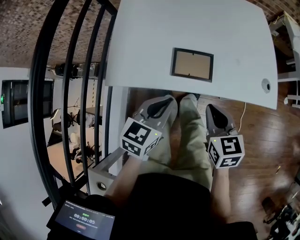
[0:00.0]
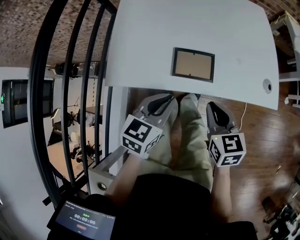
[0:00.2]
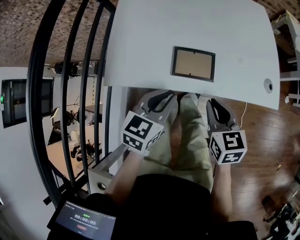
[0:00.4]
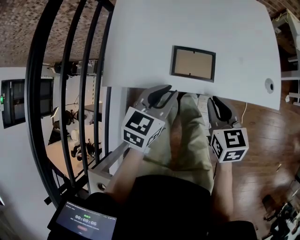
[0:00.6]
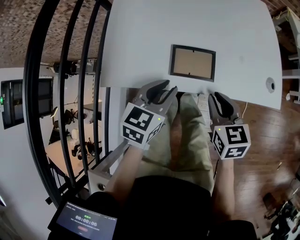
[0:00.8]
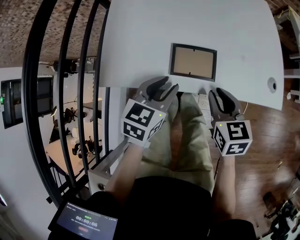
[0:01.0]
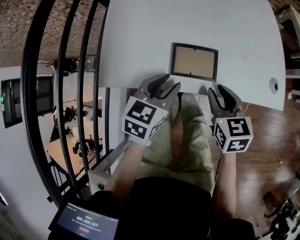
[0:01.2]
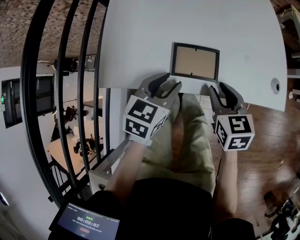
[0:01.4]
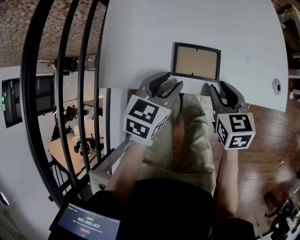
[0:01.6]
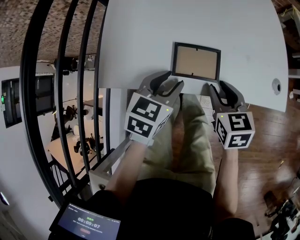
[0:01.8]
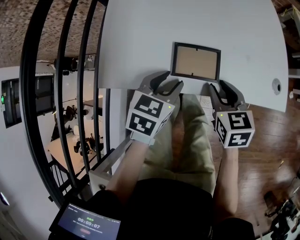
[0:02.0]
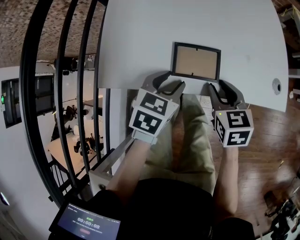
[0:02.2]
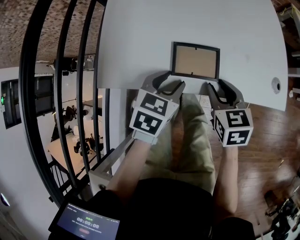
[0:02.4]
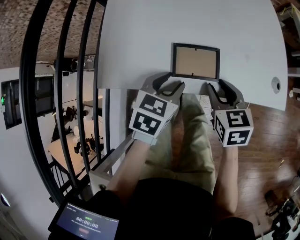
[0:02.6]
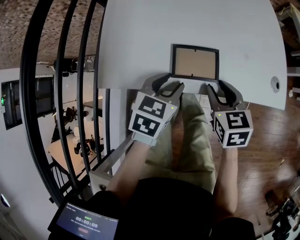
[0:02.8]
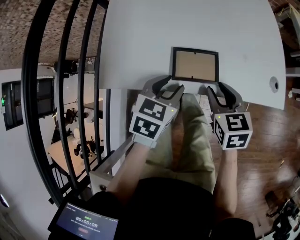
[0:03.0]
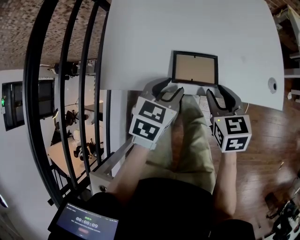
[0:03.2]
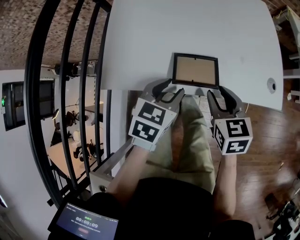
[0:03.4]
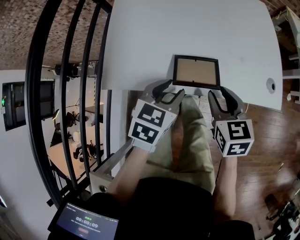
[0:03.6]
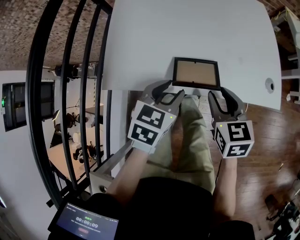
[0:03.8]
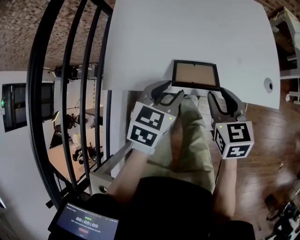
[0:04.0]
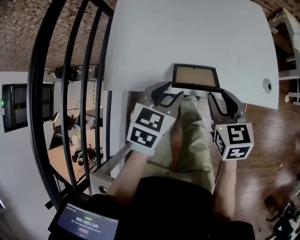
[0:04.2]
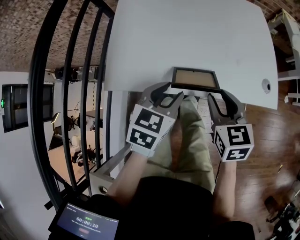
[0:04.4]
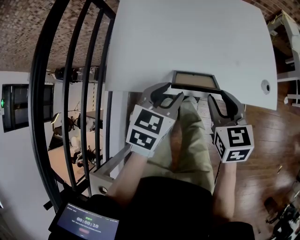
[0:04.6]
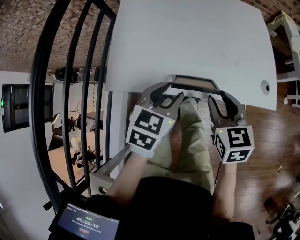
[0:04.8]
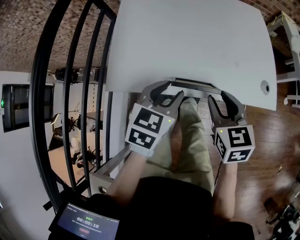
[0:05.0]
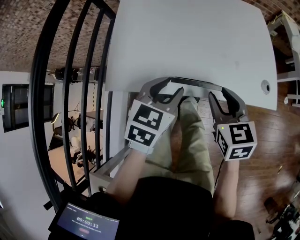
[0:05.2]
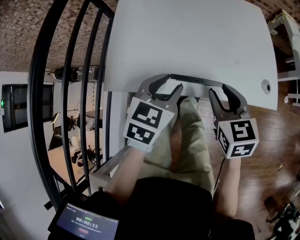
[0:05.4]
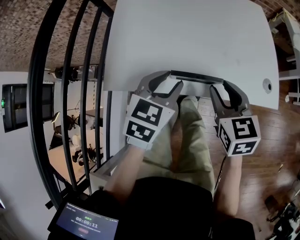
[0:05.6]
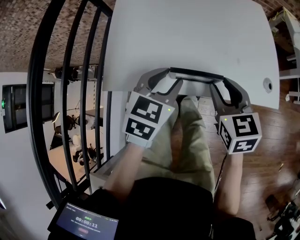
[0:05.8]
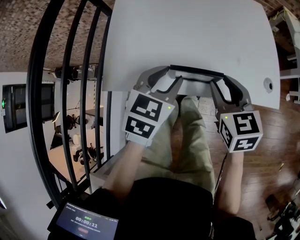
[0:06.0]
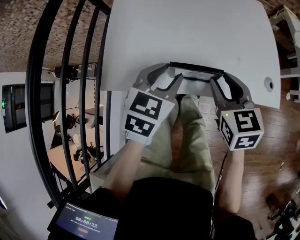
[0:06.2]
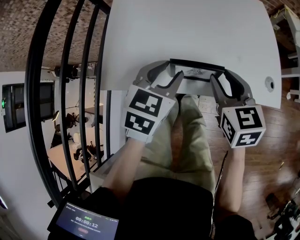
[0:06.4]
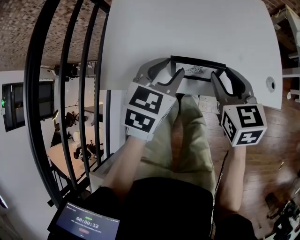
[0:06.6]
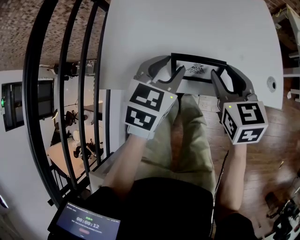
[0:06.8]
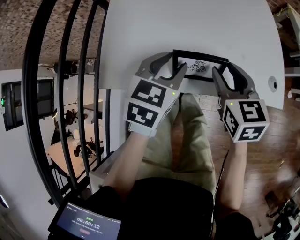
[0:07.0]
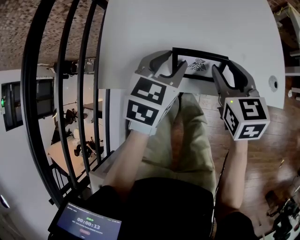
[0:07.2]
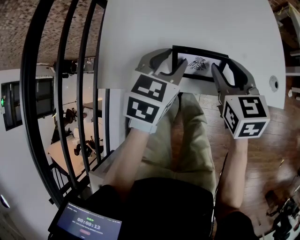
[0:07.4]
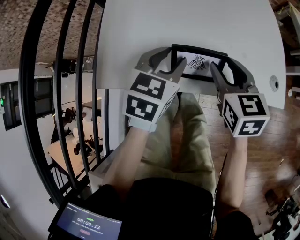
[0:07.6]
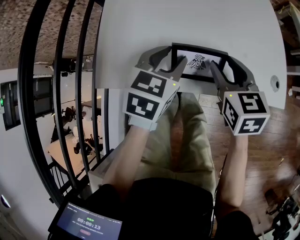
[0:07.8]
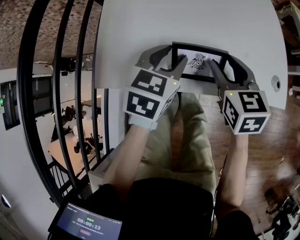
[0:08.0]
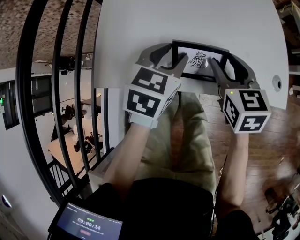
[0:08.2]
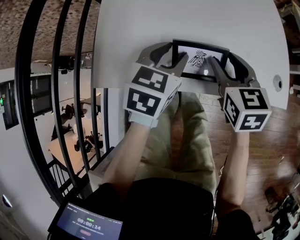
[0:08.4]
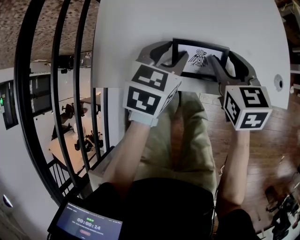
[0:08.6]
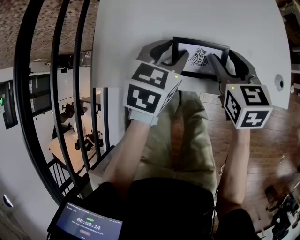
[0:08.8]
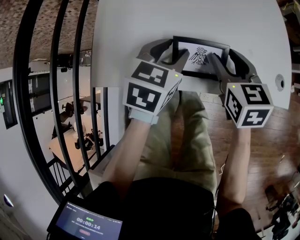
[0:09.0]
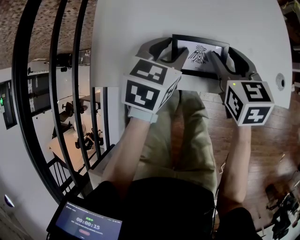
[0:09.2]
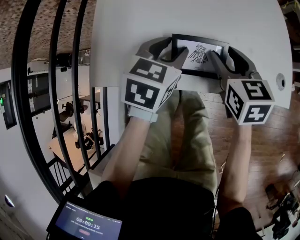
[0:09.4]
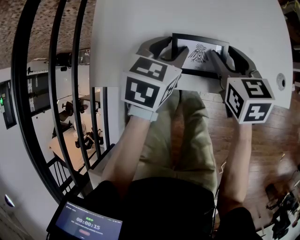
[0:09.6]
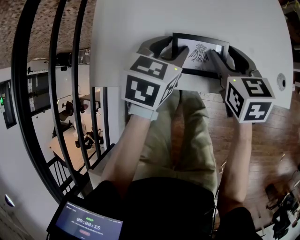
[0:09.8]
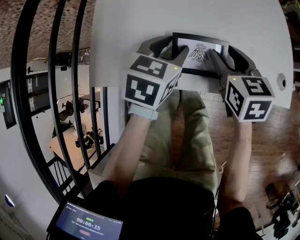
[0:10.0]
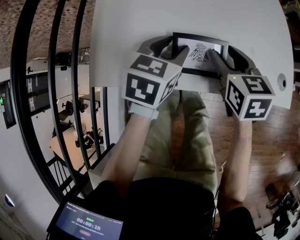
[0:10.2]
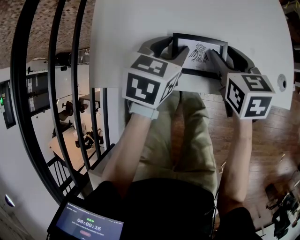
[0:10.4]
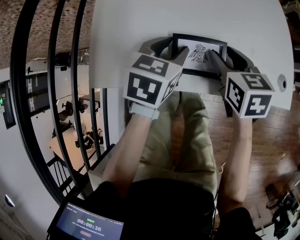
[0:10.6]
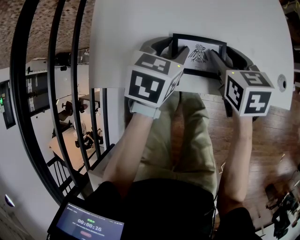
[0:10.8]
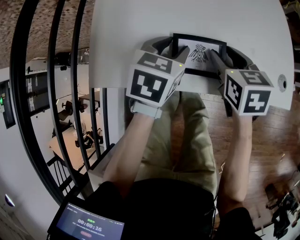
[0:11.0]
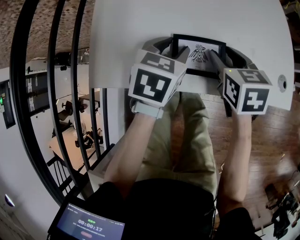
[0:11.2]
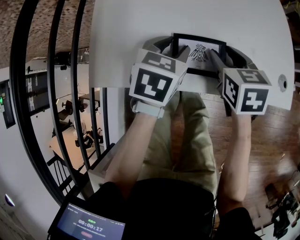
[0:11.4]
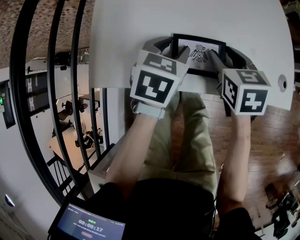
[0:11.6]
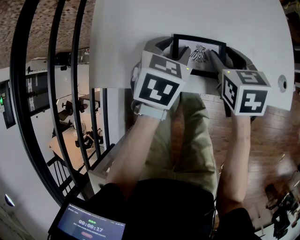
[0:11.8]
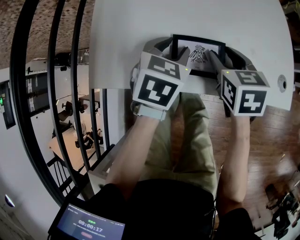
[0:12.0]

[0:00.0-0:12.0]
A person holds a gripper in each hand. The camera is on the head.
0:00.0 to 0:01.6: Both grippers move forward, about 5 cm. The left gripper opens up, while the right gripper opens up.
0:01.6 to 0:03.0: The grippers move only a little.
0:03.0 to 0:04.4: Both grippers move upward, roughly 5 cm.
0:04.4 to 0:06.0: The grippers stay close to where they were, moving slightly.
0:06.0 to 0:07.6: The right gripper shifts by about 5 cm.
0:07.6 to 0:09.0: The grippers stay close to where they were, moving slightly.
0:09.0 to 0:12.0: There are only small adjustments of the grippers.

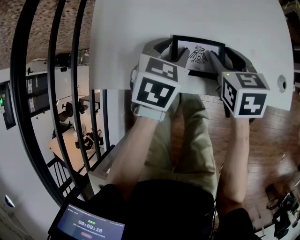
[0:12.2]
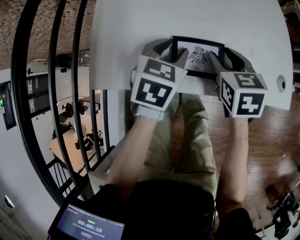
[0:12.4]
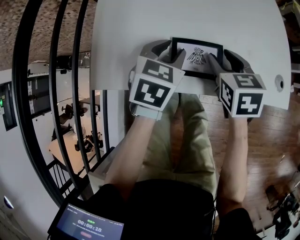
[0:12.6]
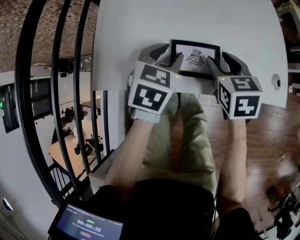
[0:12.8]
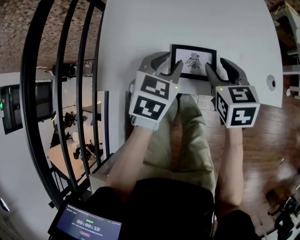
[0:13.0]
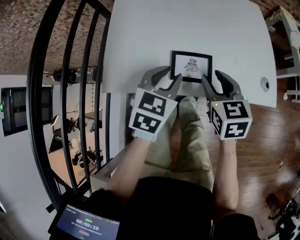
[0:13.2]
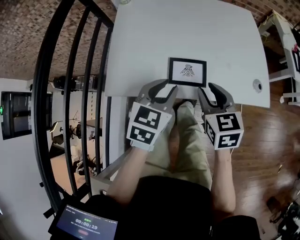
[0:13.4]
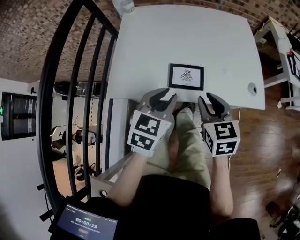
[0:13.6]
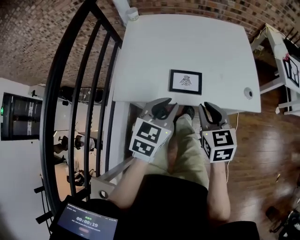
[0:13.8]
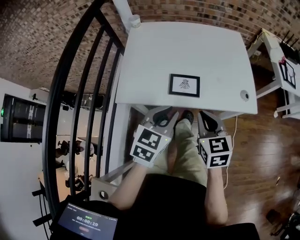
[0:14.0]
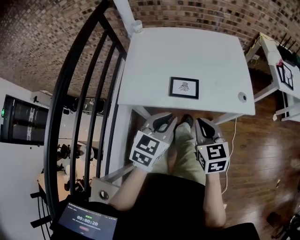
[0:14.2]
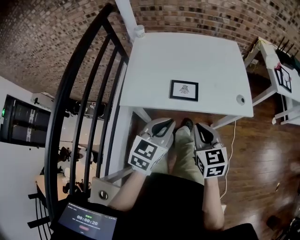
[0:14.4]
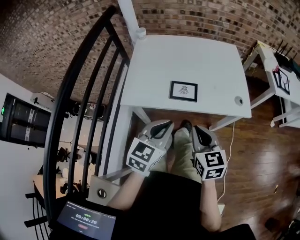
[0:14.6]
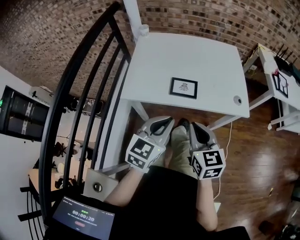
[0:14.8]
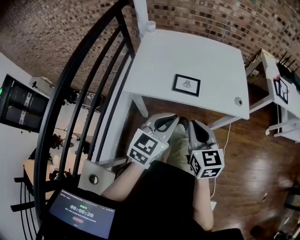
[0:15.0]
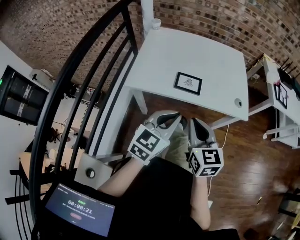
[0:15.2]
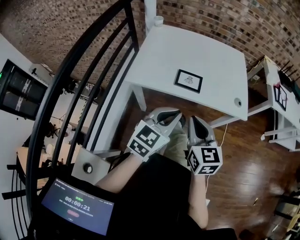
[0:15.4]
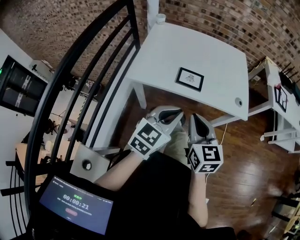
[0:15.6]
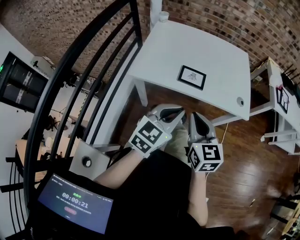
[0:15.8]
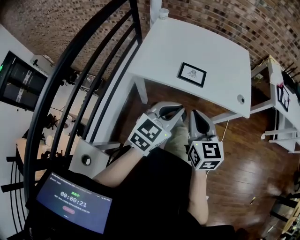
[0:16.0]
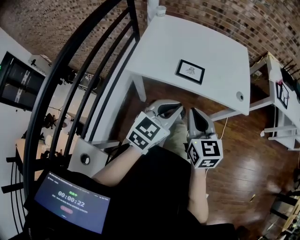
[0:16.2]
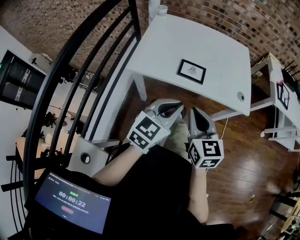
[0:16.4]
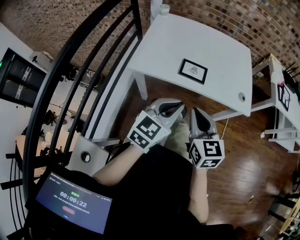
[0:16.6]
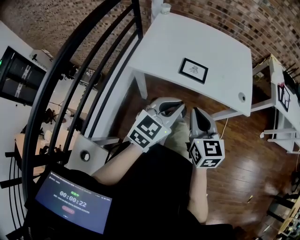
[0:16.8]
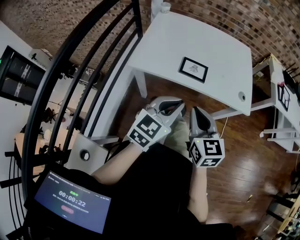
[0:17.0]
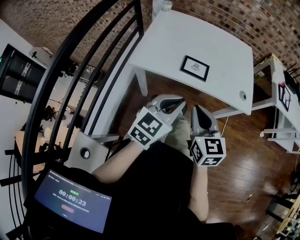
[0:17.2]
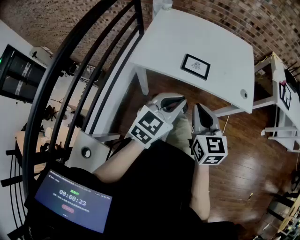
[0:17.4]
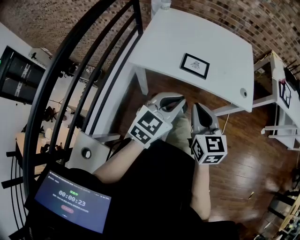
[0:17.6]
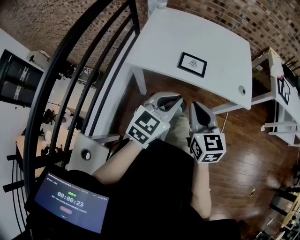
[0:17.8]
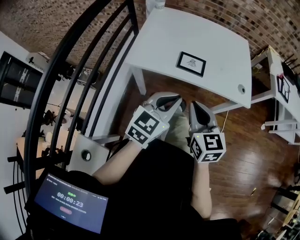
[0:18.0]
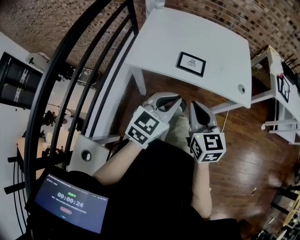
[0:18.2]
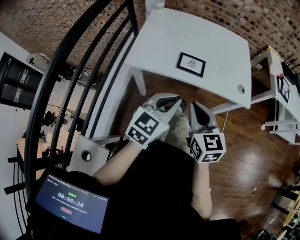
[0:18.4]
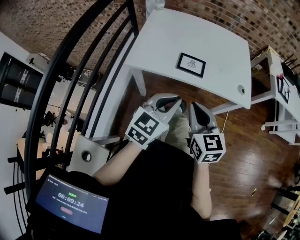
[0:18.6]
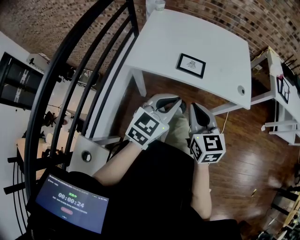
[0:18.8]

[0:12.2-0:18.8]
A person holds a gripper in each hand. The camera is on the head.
0:12.2 to 0:13.8: The two grippers go about 20 cm backward and upward. The right gripper closes up. Meanwhile the left gripper closes up.
0:13.8 to 0:15.4: The two grippers go approximately 15 cm backward and upward.
0:15.4 to 0:17.2: There are only small adjustments of the grippers.
0:17.2 to 0:18.8: The two grippers keep their place.

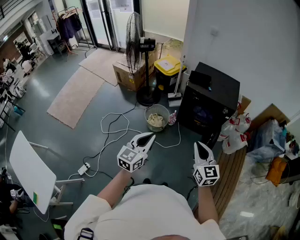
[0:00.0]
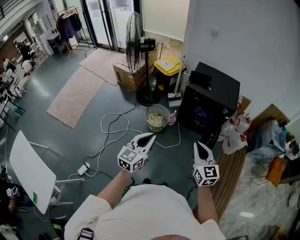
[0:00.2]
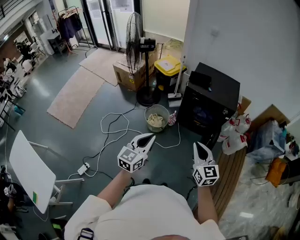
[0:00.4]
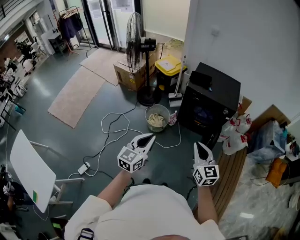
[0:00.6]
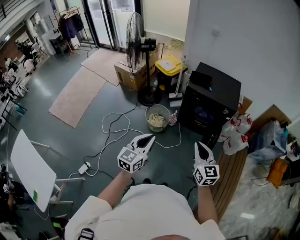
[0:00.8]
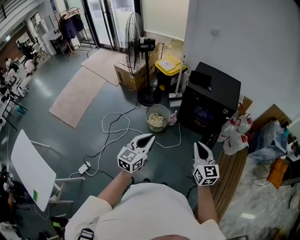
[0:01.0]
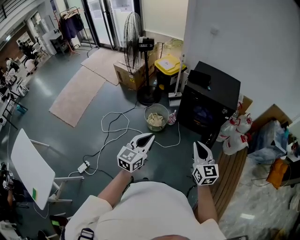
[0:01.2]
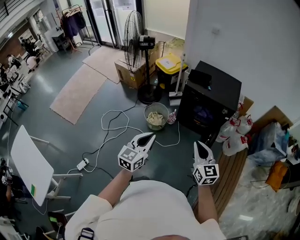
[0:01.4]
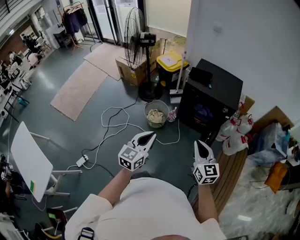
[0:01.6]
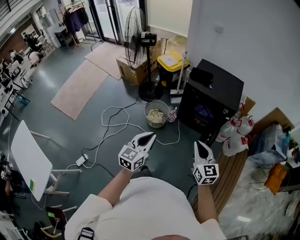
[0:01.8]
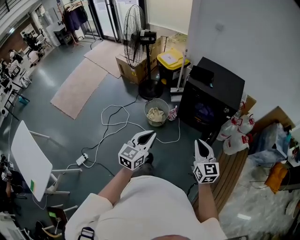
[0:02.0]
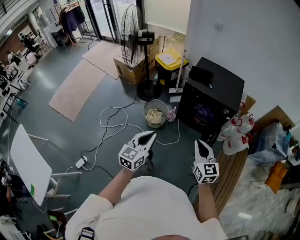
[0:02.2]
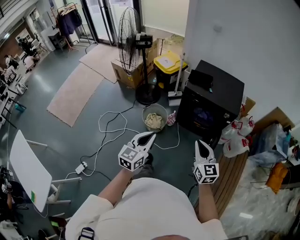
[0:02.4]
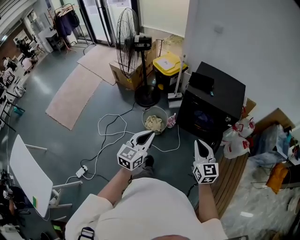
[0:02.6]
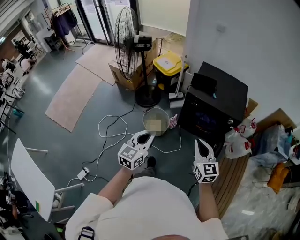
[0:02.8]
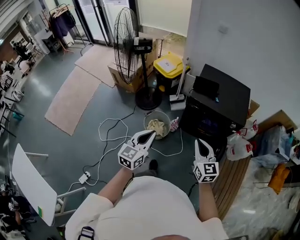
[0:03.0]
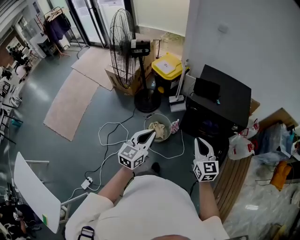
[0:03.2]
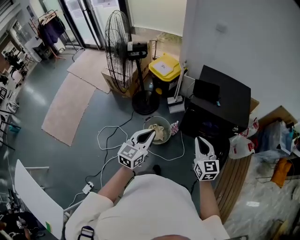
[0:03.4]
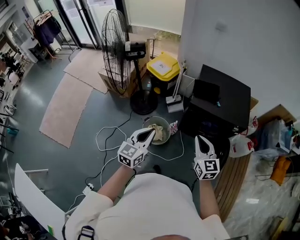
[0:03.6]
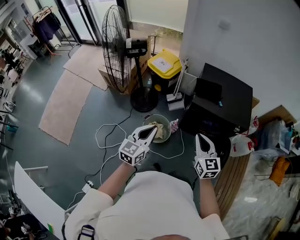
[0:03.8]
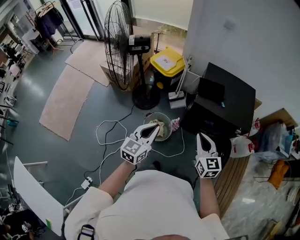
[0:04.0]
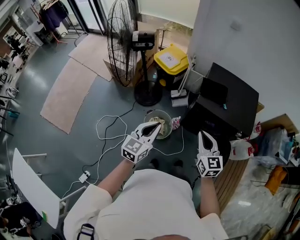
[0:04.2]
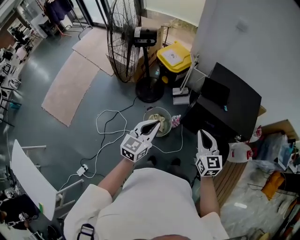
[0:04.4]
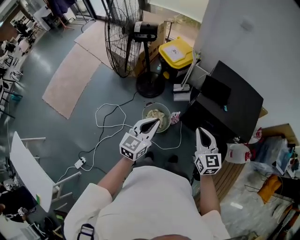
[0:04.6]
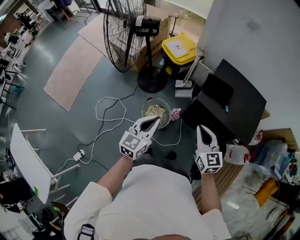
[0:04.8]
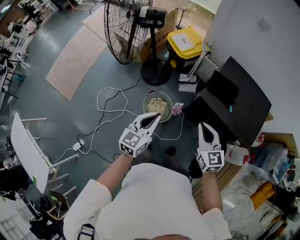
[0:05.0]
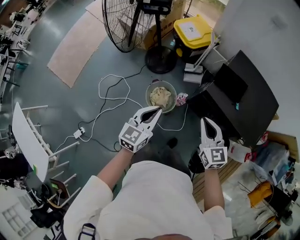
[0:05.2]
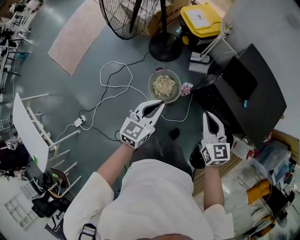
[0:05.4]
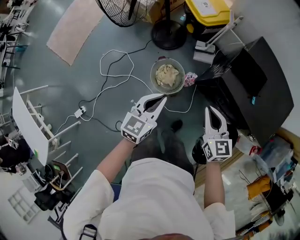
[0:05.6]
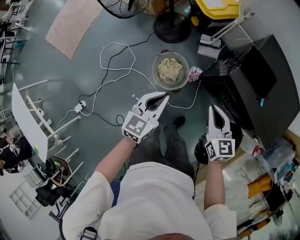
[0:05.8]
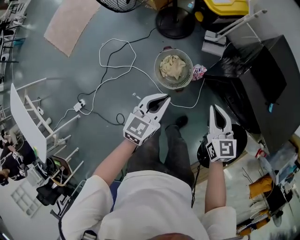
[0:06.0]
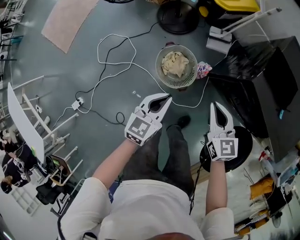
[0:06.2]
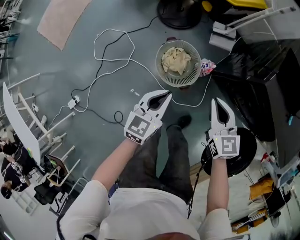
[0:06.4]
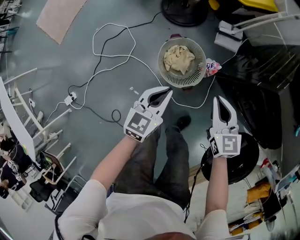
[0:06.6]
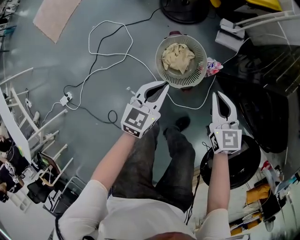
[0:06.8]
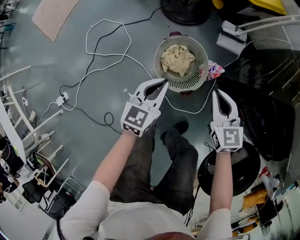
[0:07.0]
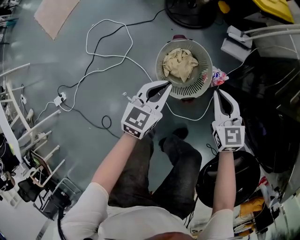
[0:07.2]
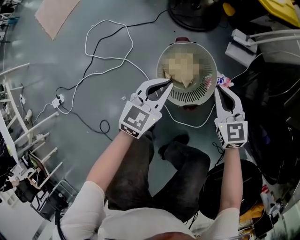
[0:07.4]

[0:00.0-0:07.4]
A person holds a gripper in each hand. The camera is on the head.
0:00.0 to 0:01.4: The grippers both shift to the right by about 5 cm.
0:01.4 to 0:03.0: The two grippers go about 25 cm forward.
0:03.0 to 0:04.4: Both grippers move forward, some 20 cm.
0:04.4 to 0:06.0: The right gripper goes some 30 cm downward and forward, and rotates approximately 20 degrees, while the left gripper is displaced downward by some 25 cm, and rotates about 20 degrees.
0:06.0 to 0:07.4: Both grippers travel together downward, about 35 cm. The right gripper rotates about 30 degrees.
